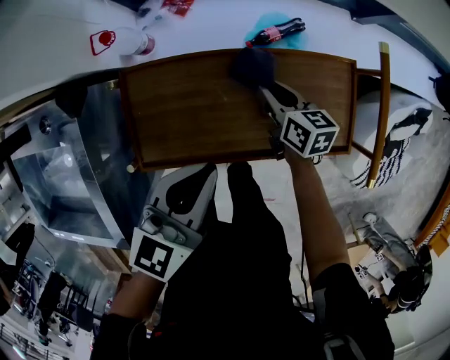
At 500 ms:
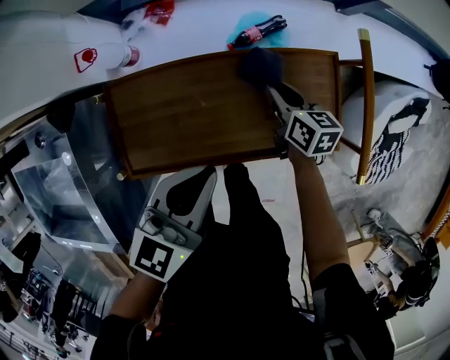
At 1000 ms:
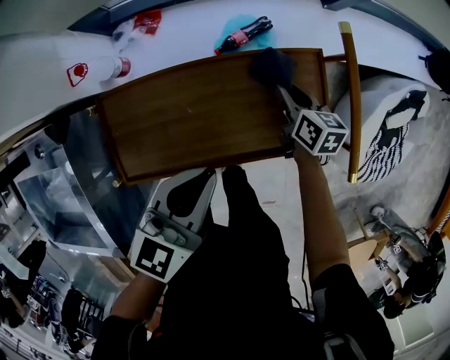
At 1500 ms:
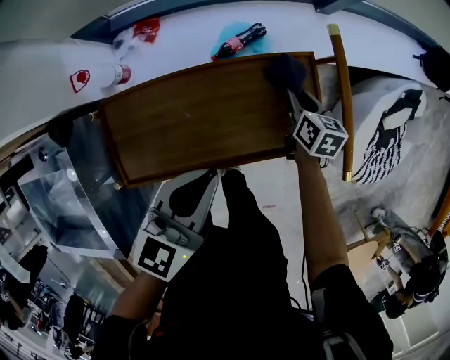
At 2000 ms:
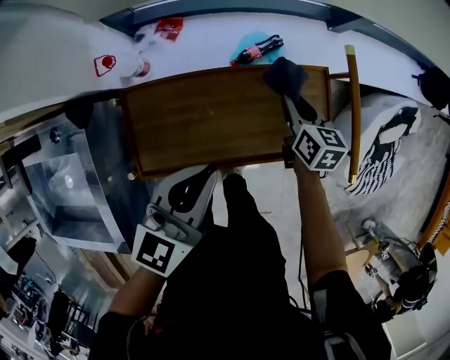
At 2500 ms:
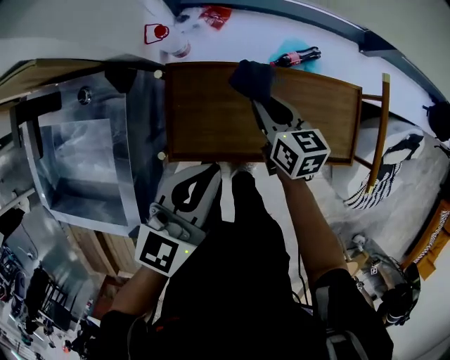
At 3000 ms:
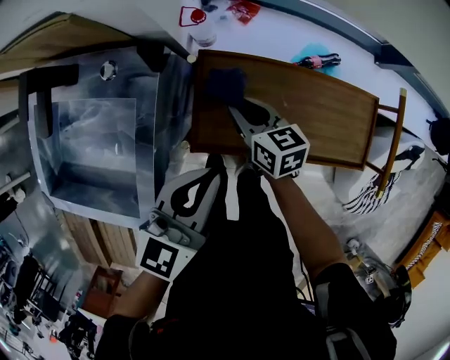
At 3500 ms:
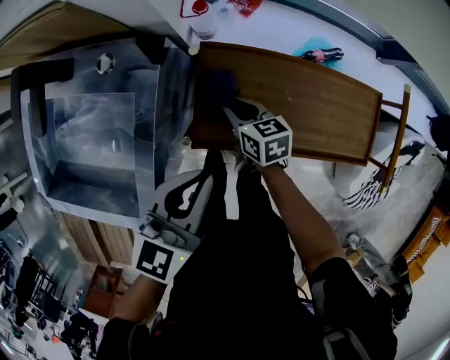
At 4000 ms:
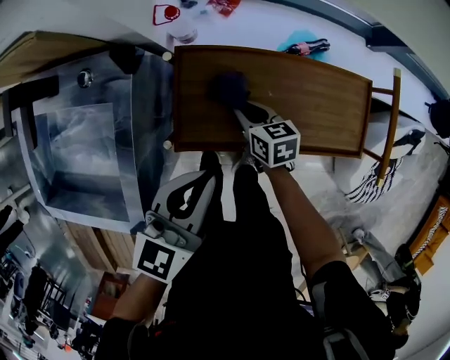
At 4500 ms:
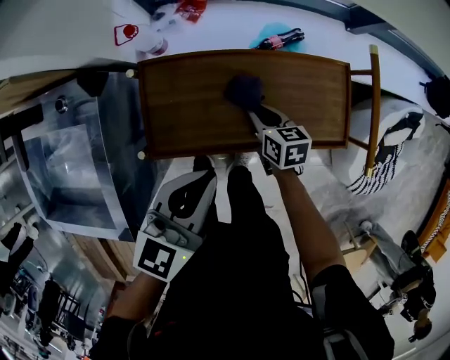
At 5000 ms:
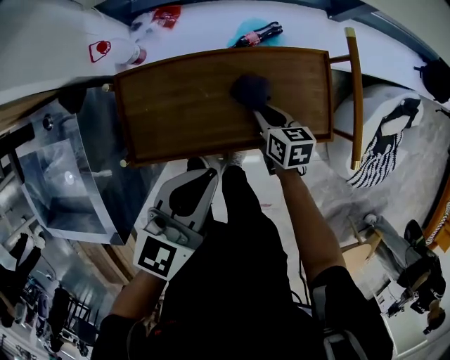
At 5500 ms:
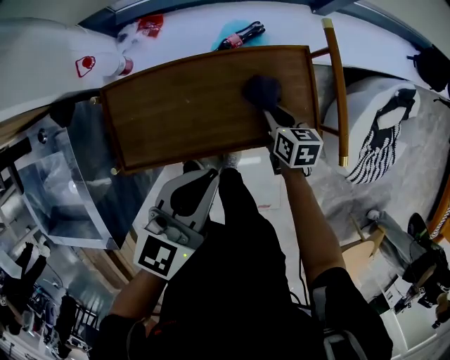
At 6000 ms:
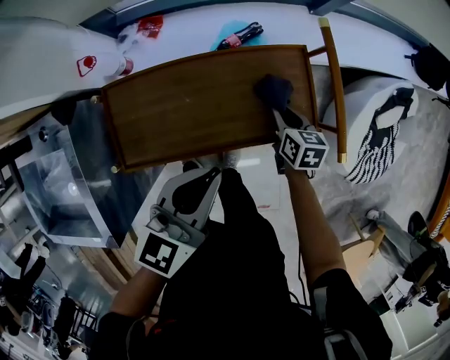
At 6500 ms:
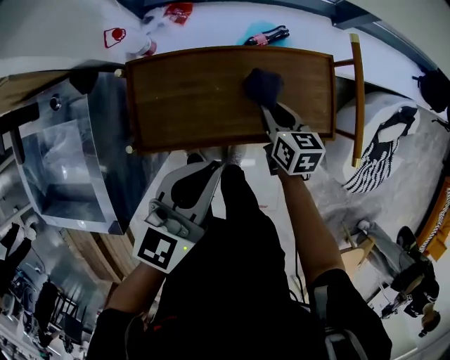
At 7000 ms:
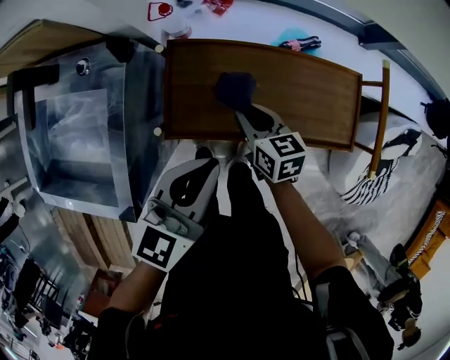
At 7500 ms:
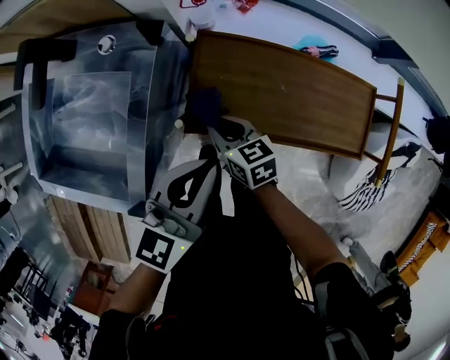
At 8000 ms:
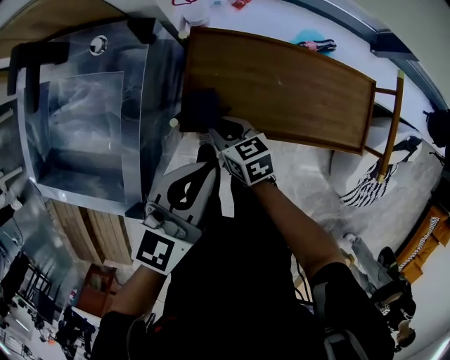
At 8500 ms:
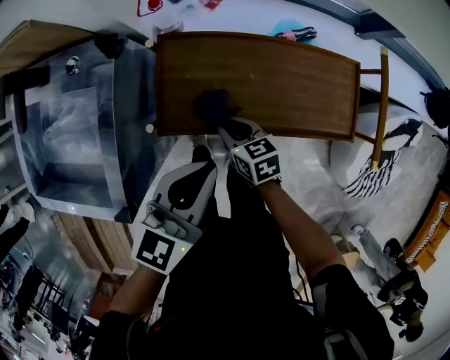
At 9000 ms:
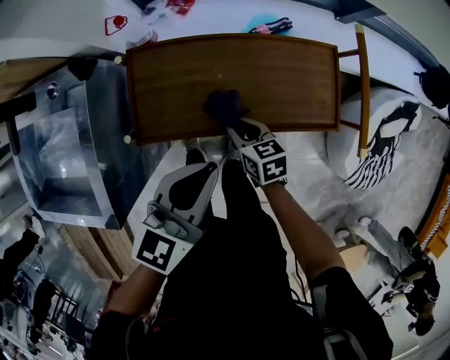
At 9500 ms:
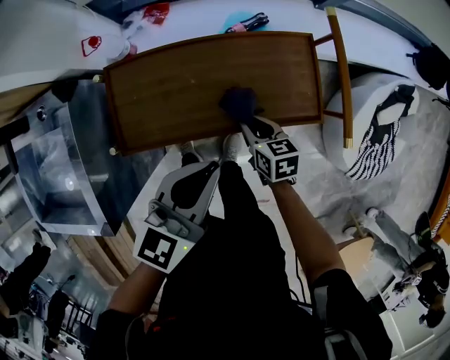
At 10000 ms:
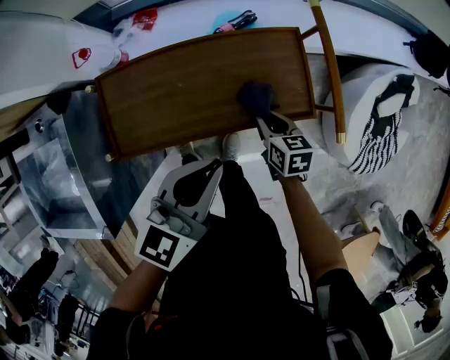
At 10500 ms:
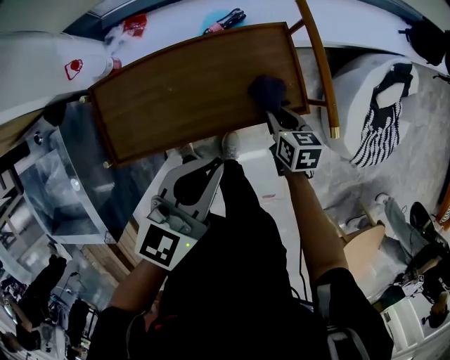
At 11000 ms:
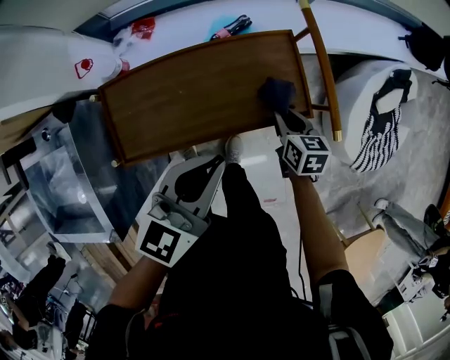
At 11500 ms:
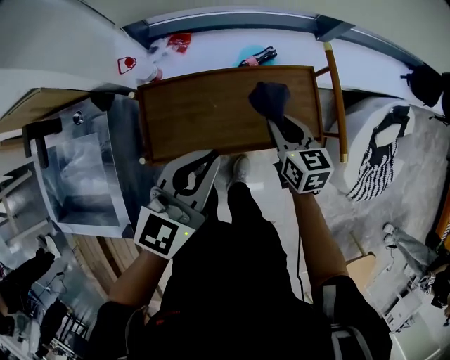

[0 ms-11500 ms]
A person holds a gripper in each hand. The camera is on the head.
0 ms to 2000 ms: The right gripper shifts some 15 cm to the right and upward. The left gripper moves about 10 cm to the right and comes back.
2000 ms to 4000 ms: The right gripper changes place by approximately 30 cm, and changes its angle by approximately 30 degrees; the left gripper moves approximately 15 cm.
4000 ms to 6000 ms: The right gripper heads to the right, covering some 35 cm, and swivels about 30 degrees, while the left gripper travels to the right by roughly 20 cm.
6000 ms to 7500 ms: The left gripper changes place by some 25 cm; the right gripper shifts by some 40 cm, and changes its angle by some 40 degrees.
7500 ms to 9500 ms: Both grippers travel together to the right, approximately 25 cm. The right gripper rotates about 30 degrees.
9500 ms to 11500 ms: The right gripper heads upward and forward, covering roughly 15 cm. Meanwhile the left gripper heads upward and to the left, covering approximately 10 cm.

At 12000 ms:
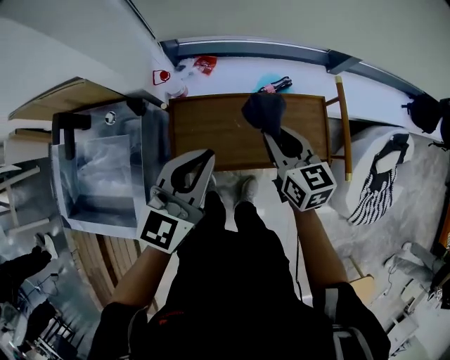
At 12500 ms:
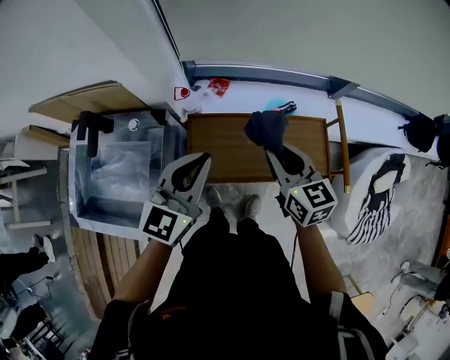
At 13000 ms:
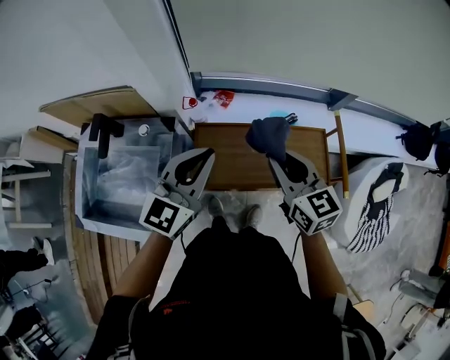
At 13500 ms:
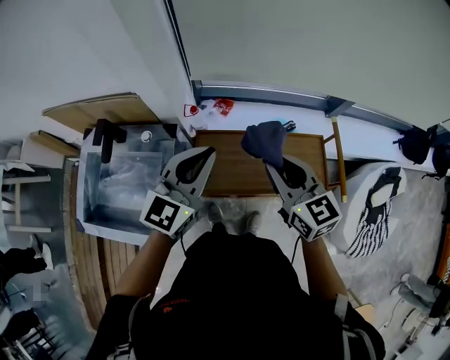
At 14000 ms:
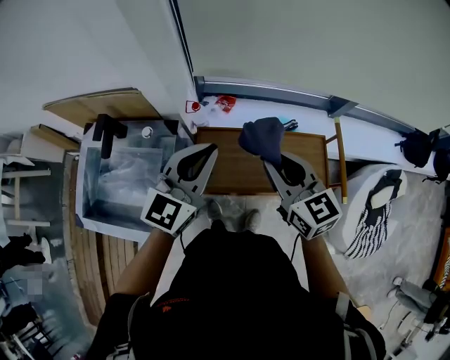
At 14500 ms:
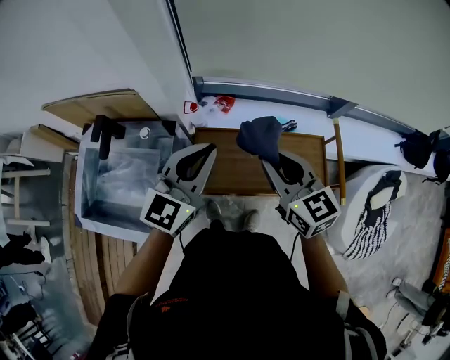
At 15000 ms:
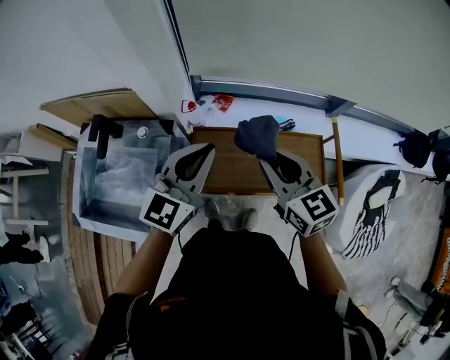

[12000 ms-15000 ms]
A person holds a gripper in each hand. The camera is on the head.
12000 ms to 13500 ms: The grippers both shift upward and to the left by some 15 cm.
13500 ms to 15000 ms: The grippers stay close to where they were, moving slightly.

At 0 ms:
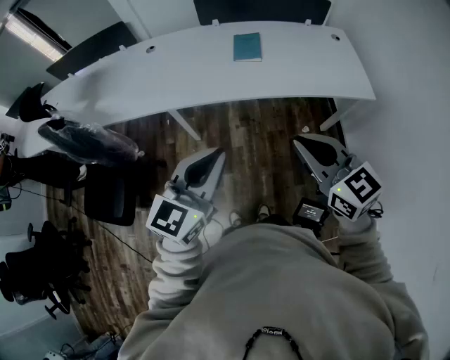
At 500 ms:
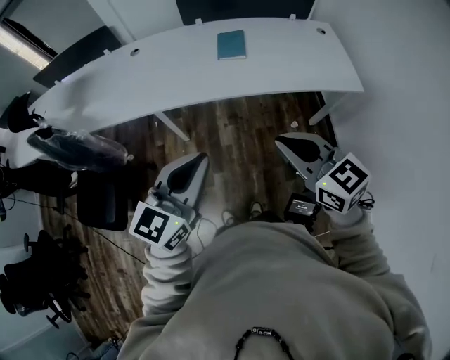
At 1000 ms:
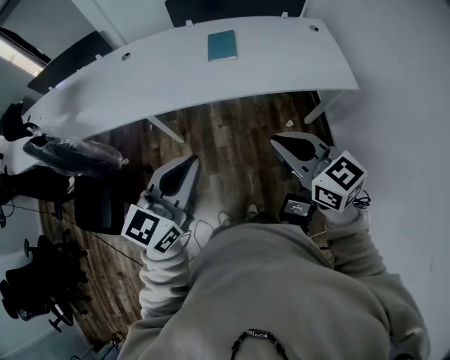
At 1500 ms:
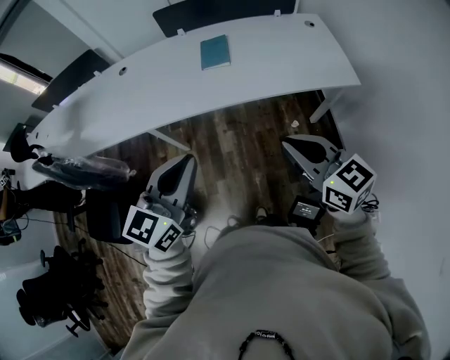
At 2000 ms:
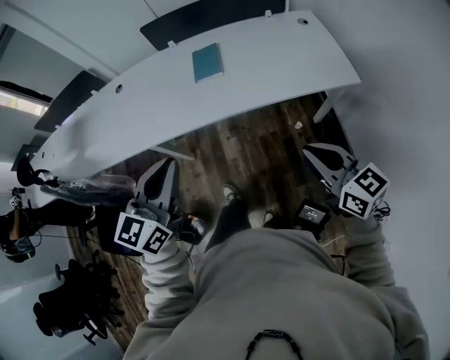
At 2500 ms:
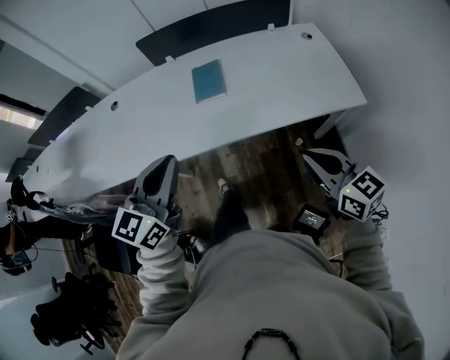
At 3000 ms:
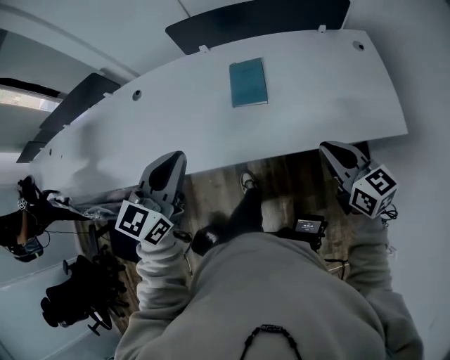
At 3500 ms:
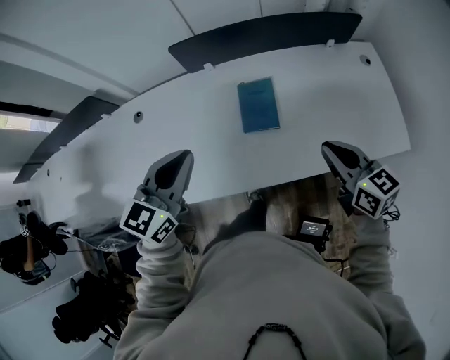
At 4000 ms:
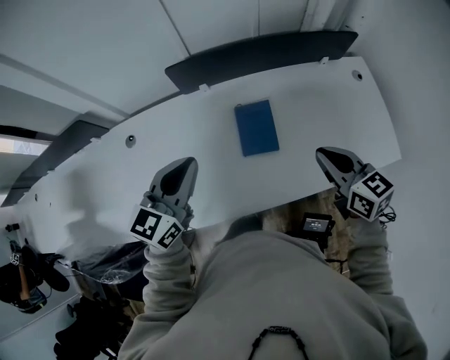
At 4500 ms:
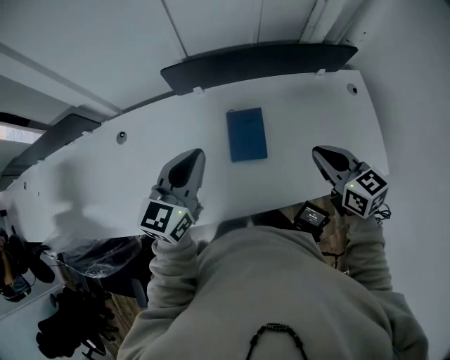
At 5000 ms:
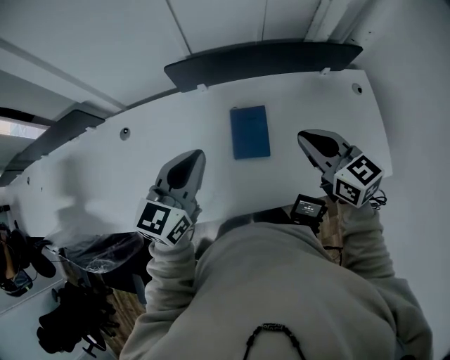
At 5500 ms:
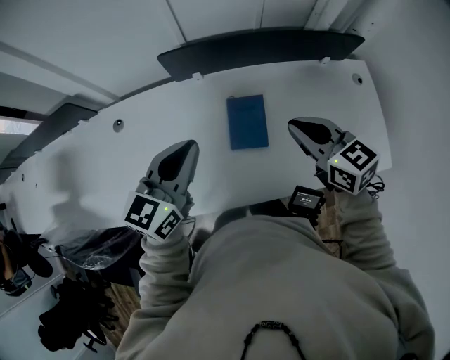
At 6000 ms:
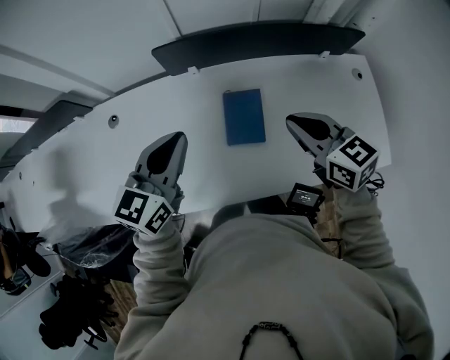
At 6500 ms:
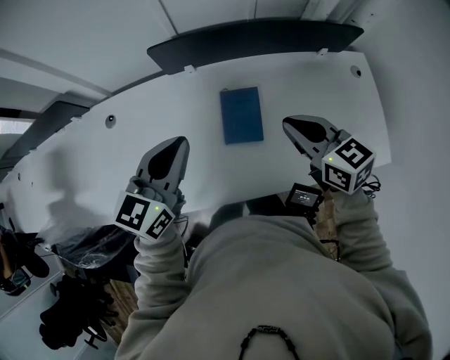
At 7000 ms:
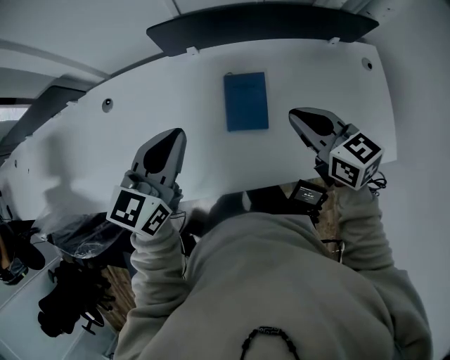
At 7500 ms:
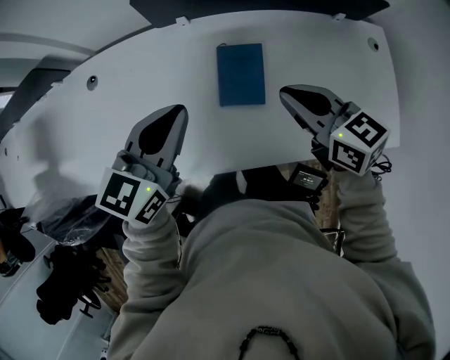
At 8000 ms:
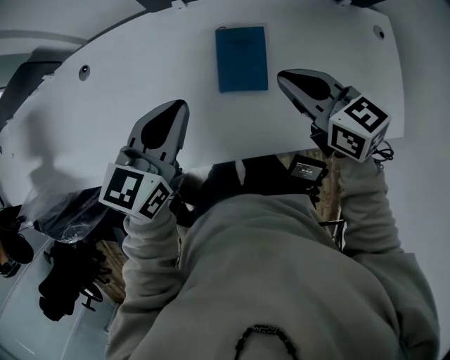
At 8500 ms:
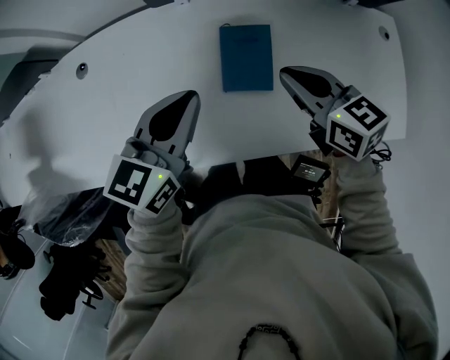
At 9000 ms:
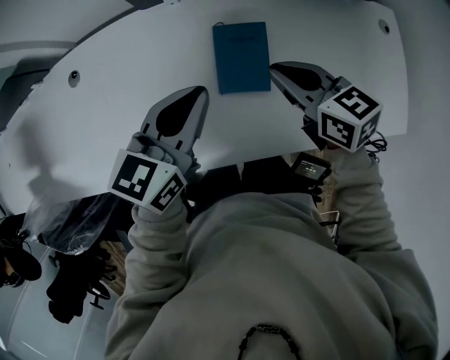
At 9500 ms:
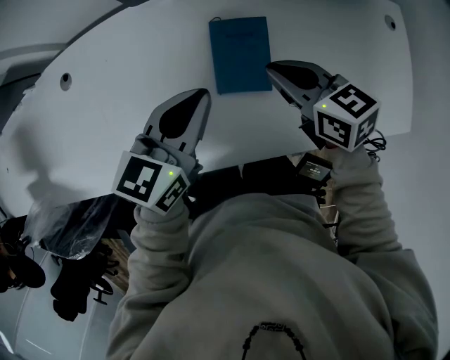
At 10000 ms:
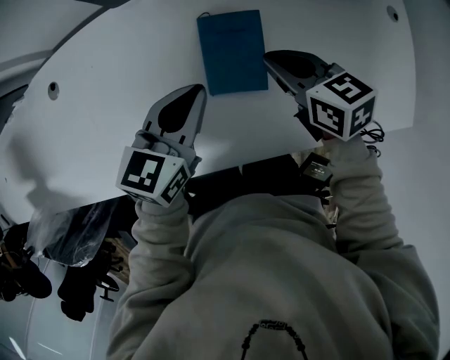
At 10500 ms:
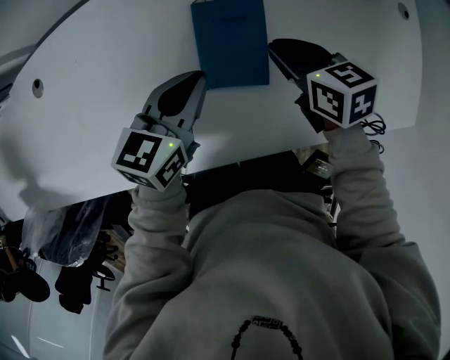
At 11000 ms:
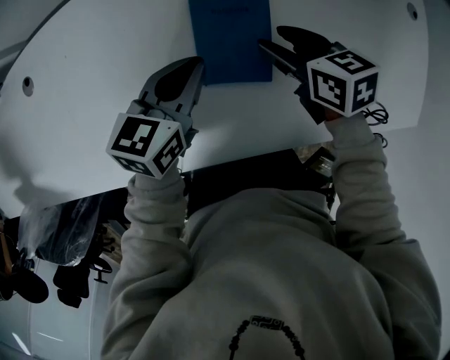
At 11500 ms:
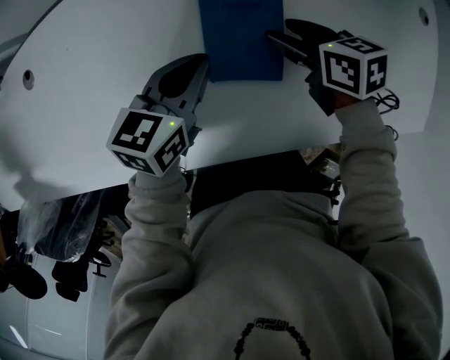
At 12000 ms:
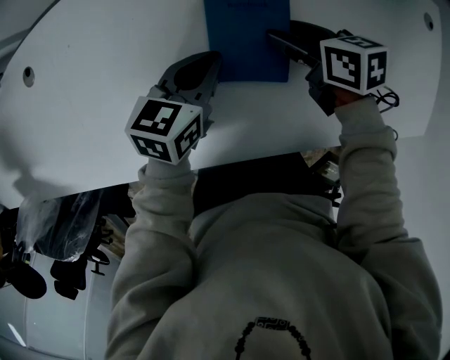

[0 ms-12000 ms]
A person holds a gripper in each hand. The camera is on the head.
0 ms to 2000 ms: The left gripper goes about 15 cm forward and to the right, while the right gripper moves to the right, approximately 20 cm.
2000 ms to 4000 ms: The two grippers travel together, forward, some 40 cm.
4000 ms to 6000 ms: The right gripper goes approximately 10 cm forward.
6000 ms to 8000 ms: The two grippers go about 10 cm downward.
8000 ms to 10000 ms: The left gripper moves downward, forward and to the right, about 15 cm. Meanwhile the right gripper travels downward and forward by some 15 cm.
10000 ms to 12000 ms: The grippers both shift downward by approximately 15 cm. The right gripper opens.
